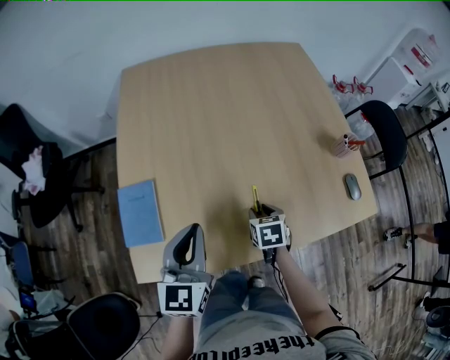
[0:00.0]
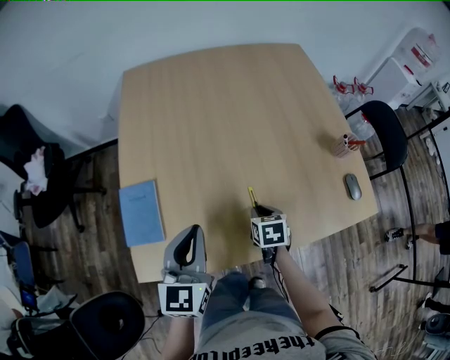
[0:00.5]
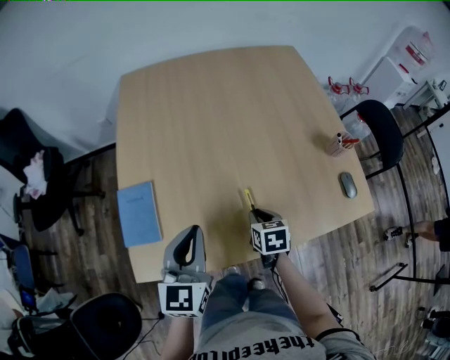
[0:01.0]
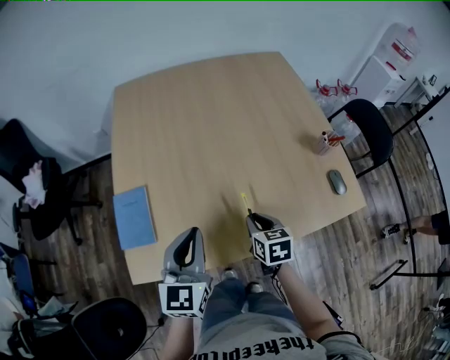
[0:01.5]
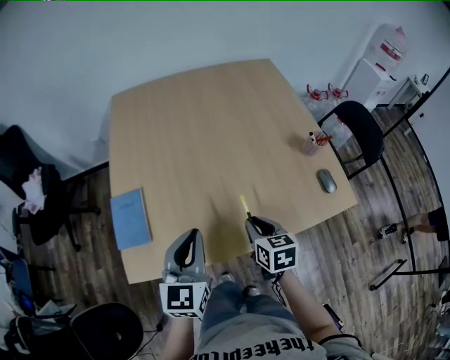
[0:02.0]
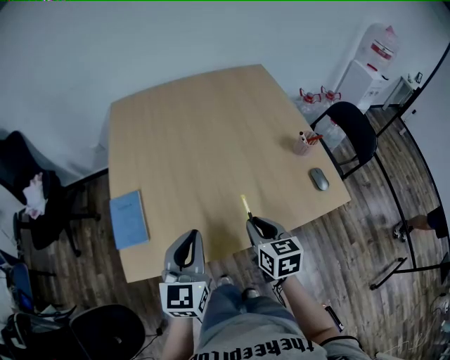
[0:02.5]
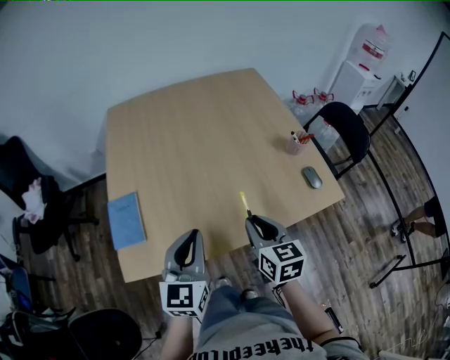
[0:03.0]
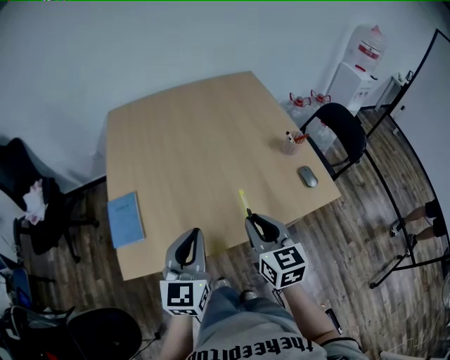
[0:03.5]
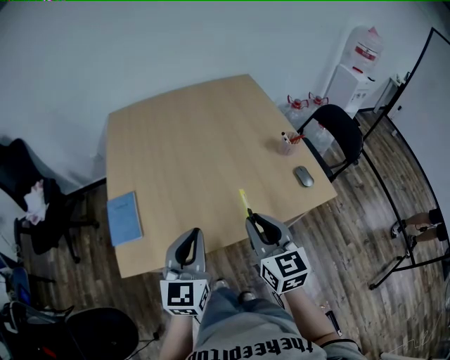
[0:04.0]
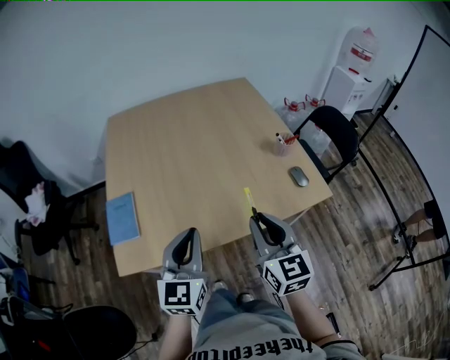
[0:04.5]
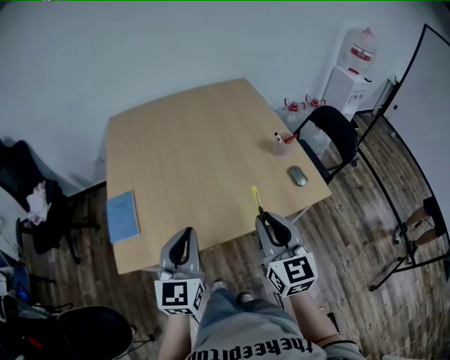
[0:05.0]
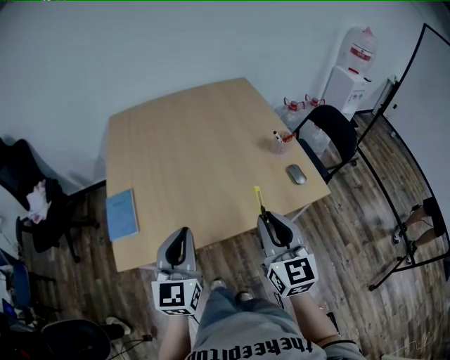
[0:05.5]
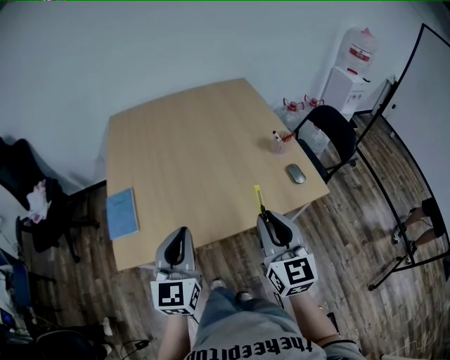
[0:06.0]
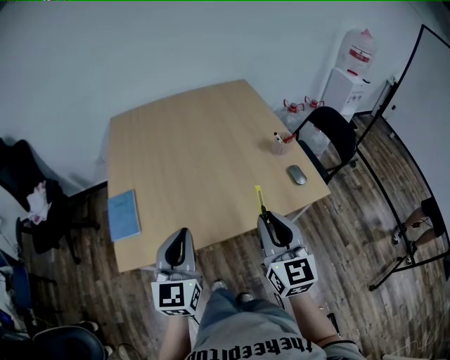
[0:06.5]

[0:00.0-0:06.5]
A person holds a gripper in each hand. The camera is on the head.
0.0 to 2.0 s: The left gripper changes place by about 5 cm. The right gripper moves upward and backward, some 15 cm, swivels roughly 20 degrees, and closes up.
2.0 to 4.5 s: The right gripper moves upward and backward, some 20 cm, and changes its angle by about 30 degrees. Meanwhile the left gripper goes about 10 cm backward and to the right.
4.5 to 6.5 s: The grippers make only small movements.

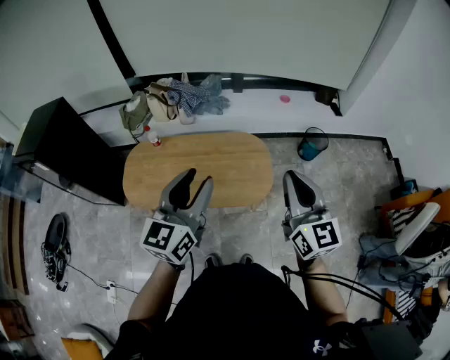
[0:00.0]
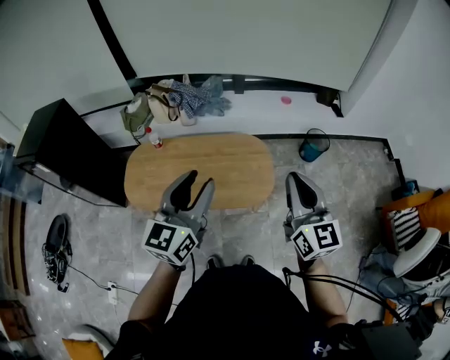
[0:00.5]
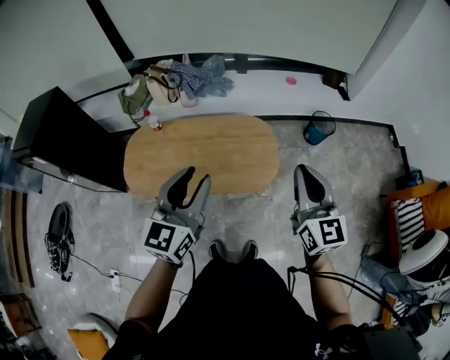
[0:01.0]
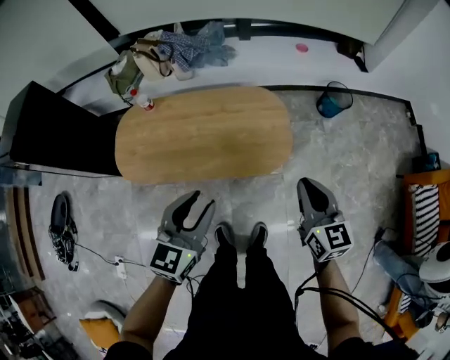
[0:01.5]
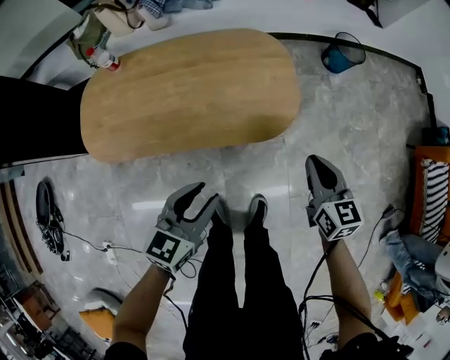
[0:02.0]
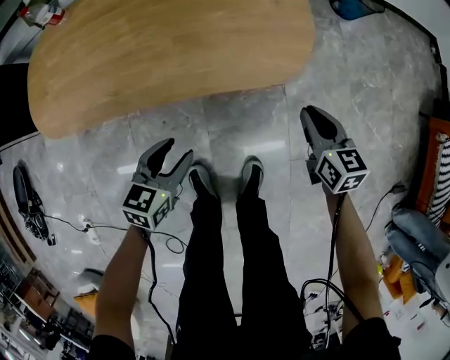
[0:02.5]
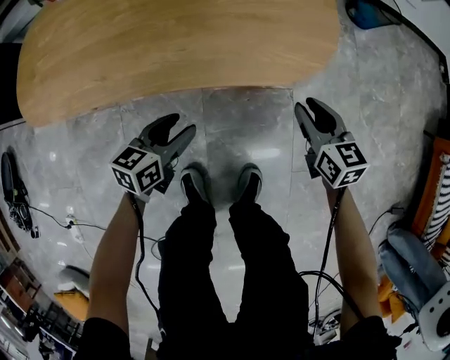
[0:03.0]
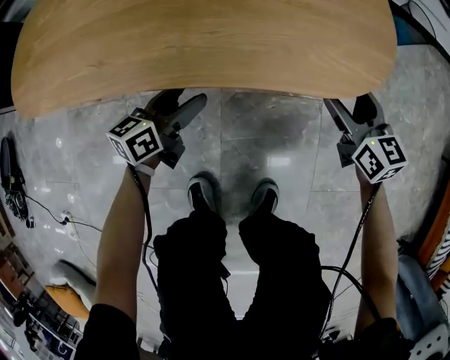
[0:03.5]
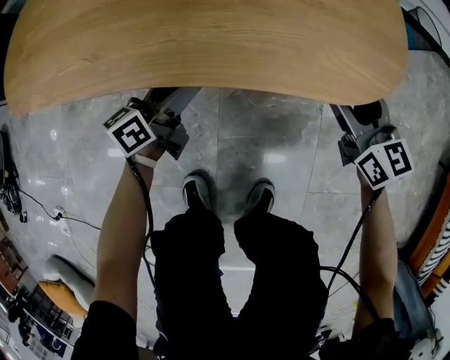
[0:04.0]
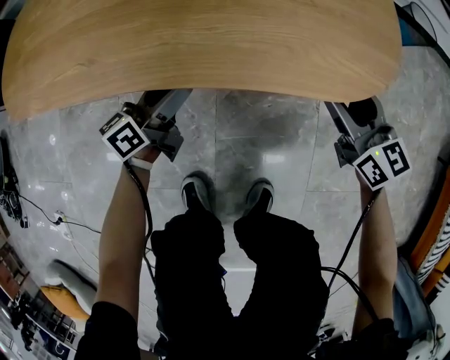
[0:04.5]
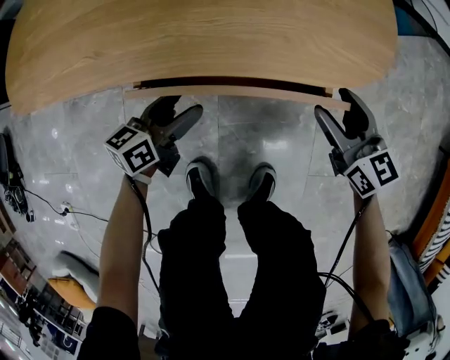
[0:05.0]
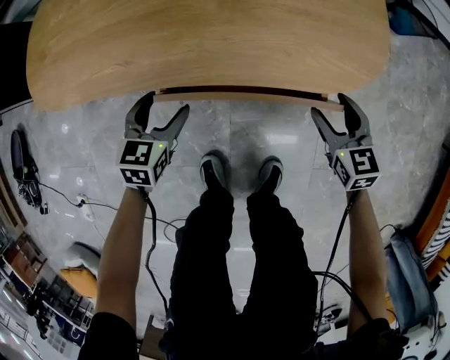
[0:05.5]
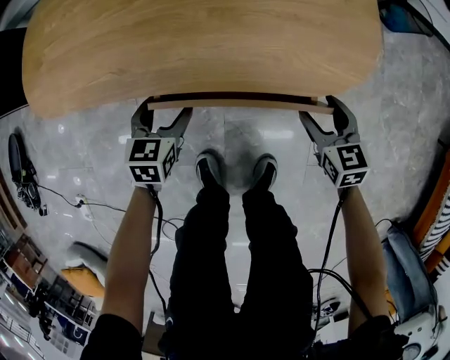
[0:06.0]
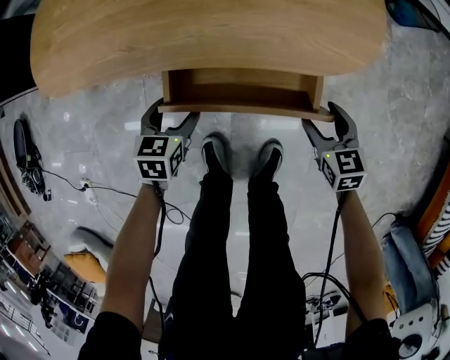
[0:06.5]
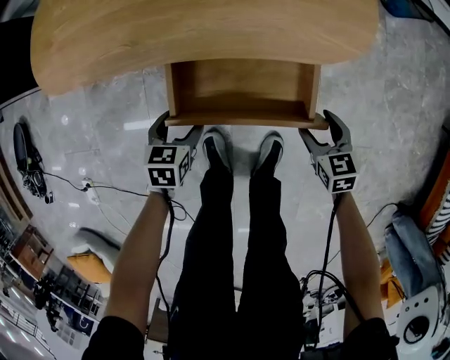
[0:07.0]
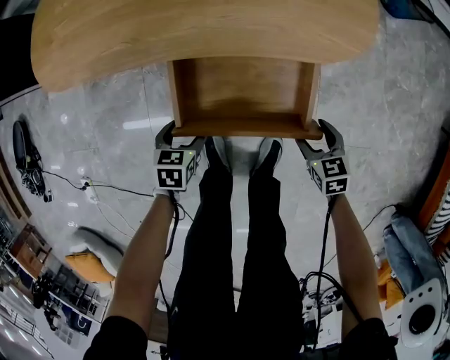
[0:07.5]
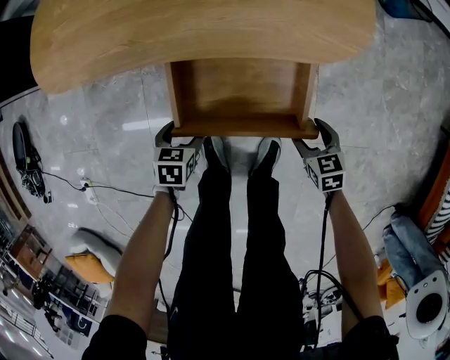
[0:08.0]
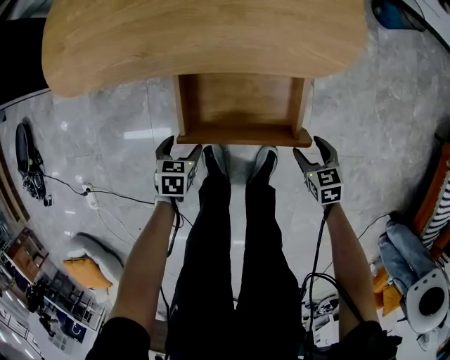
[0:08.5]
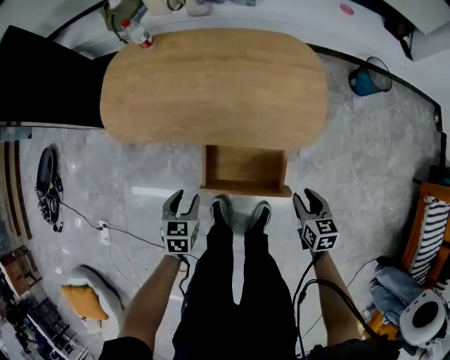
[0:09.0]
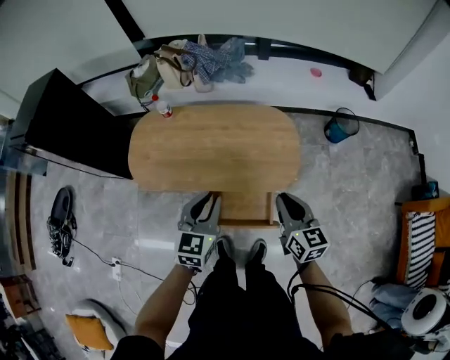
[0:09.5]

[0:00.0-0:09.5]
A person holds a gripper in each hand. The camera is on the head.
0.0 to 2.0 s: The grippers both shift downward by approximately 40 cm. The left gripper changes its angle by roughly 30 degrees. Meanwhile the right gripper turns by about 30 degrees.
2.0 to 4.0 s: The two grippers go about 35 cm downward. The left gripper rotates roughly 40 degrees, and opens up. The right gripper swivels roughly 20 degrees, and opens its fingers.
4.0 to 5.5 s: The right gripper shifts roughly 5 cm backward. The left gripper moves backward and to the left, some 10 cm, and tips its fingers downward by roughly 40 degrees.
5.5 to 7.5 s: The grippers both shift backward by about 15 cm. The left gripper turns by some 20 degrees.
7.5 to 9.5 s: Both grippers move upward, approximately 60 cm. The left gripper angles its fingers upward, by about 40 degrees, and closes. Meanwhile the right gripper angles its fingers upward, by about 40 degrees, and closes.

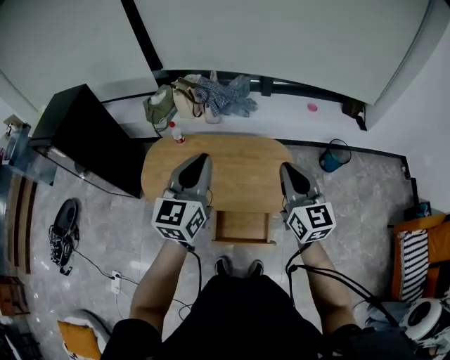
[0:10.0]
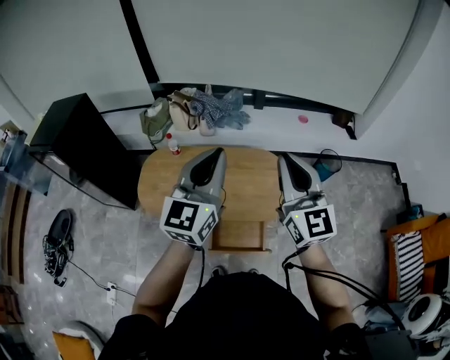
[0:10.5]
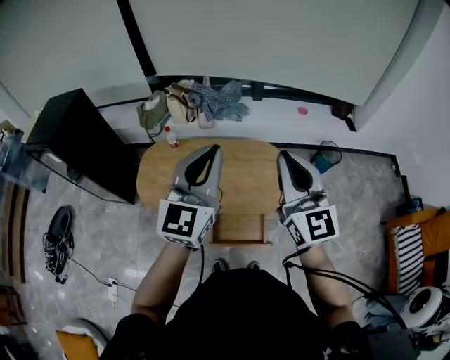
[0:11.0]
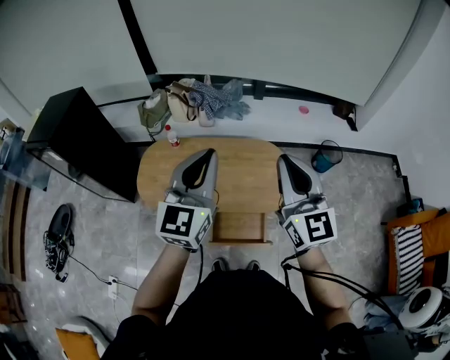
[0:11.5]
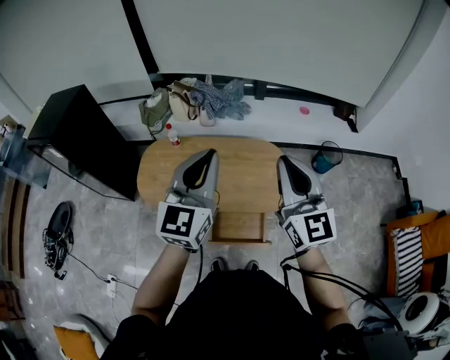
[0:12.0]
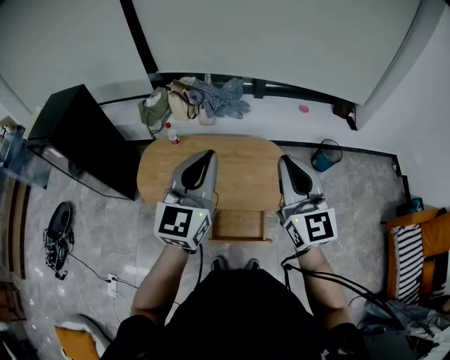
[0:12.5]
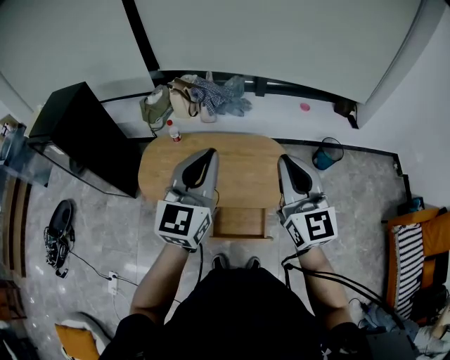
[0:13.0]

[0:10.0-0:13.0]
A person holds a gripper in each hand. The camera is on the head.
10.0 to 11.5 s: The left gripper heads upward, covering about 5 cm, while the right gripper heads upward, covering roughly 10 cm.
11.5 to 13.0 s: The grippers make only small movements.

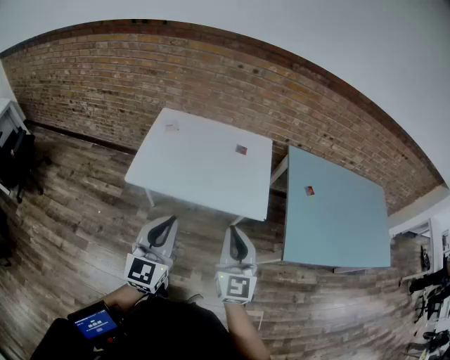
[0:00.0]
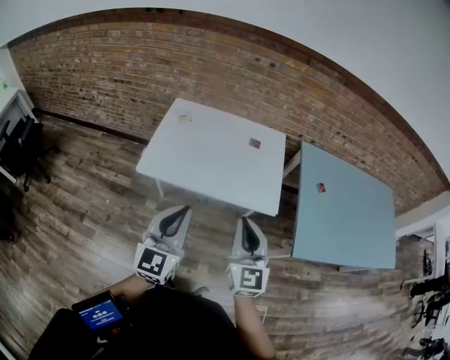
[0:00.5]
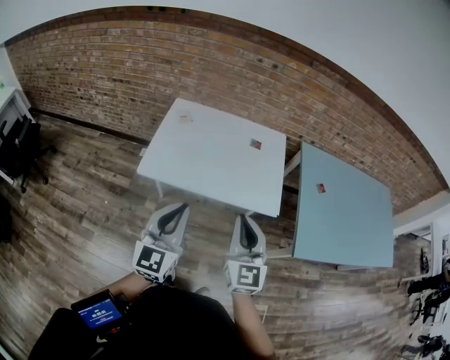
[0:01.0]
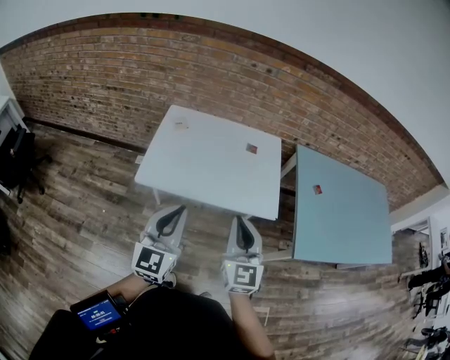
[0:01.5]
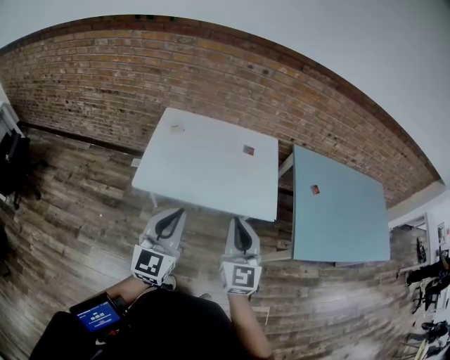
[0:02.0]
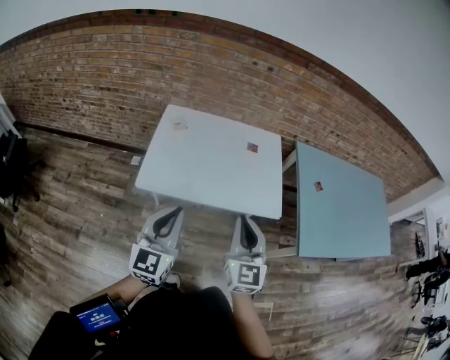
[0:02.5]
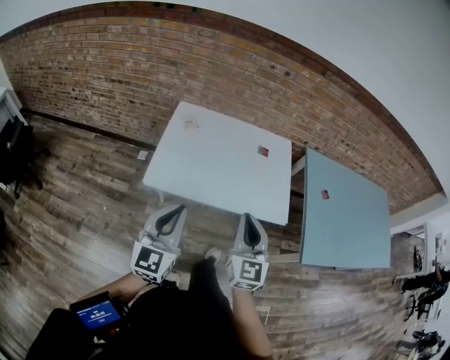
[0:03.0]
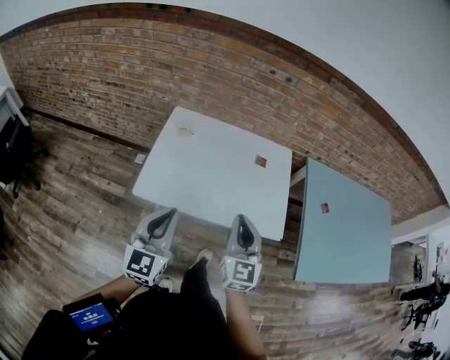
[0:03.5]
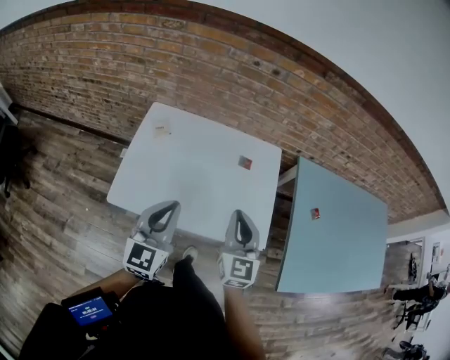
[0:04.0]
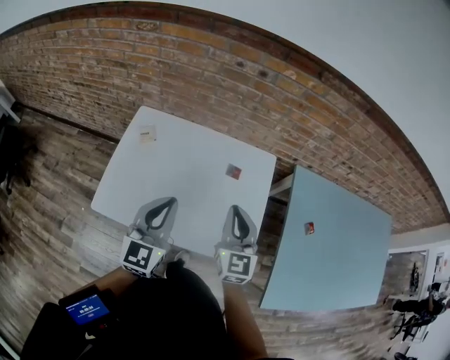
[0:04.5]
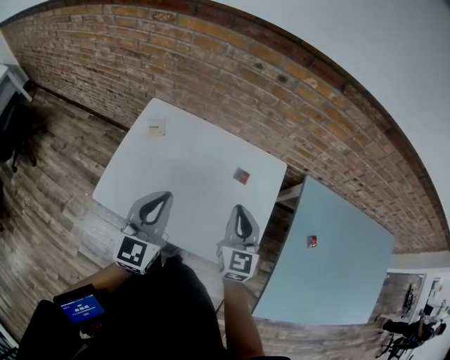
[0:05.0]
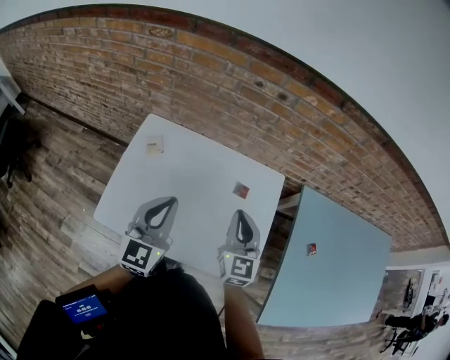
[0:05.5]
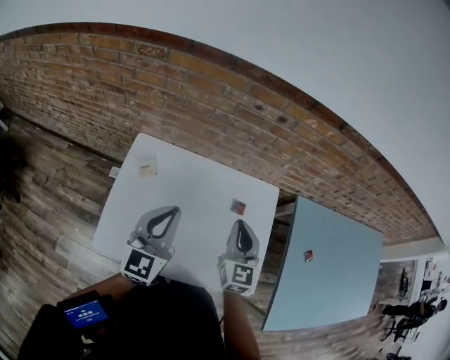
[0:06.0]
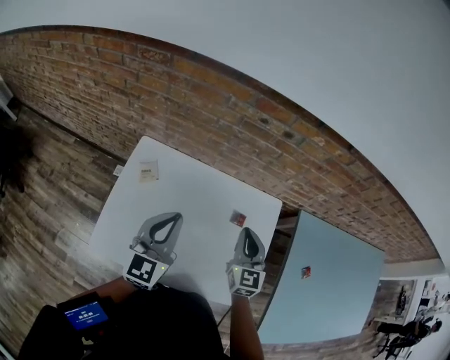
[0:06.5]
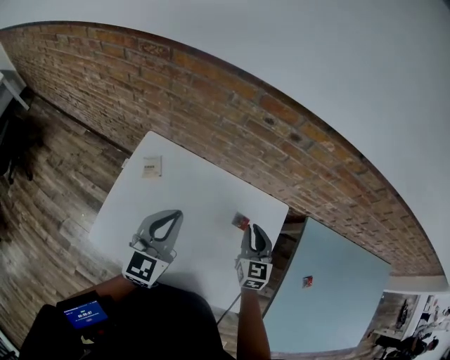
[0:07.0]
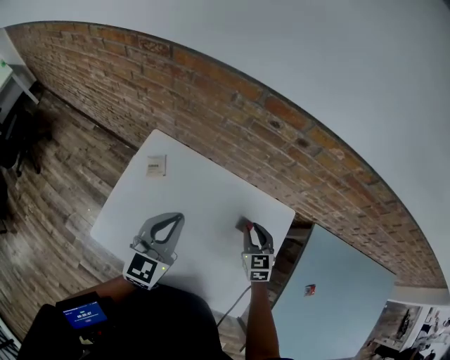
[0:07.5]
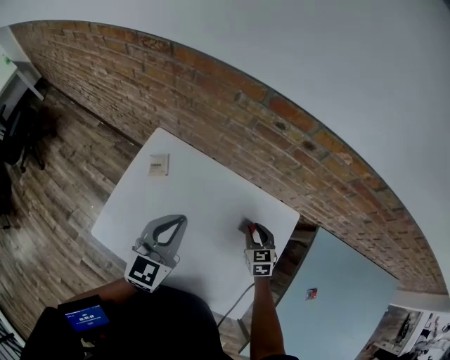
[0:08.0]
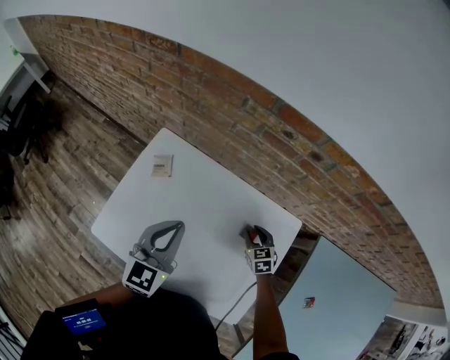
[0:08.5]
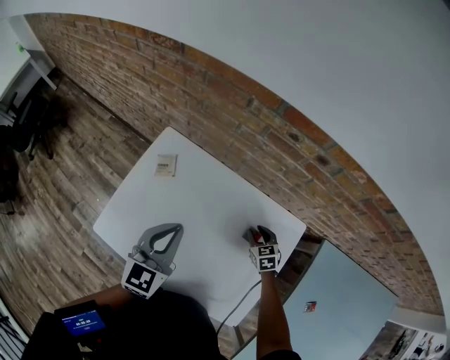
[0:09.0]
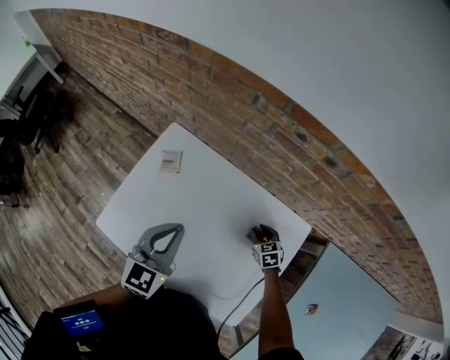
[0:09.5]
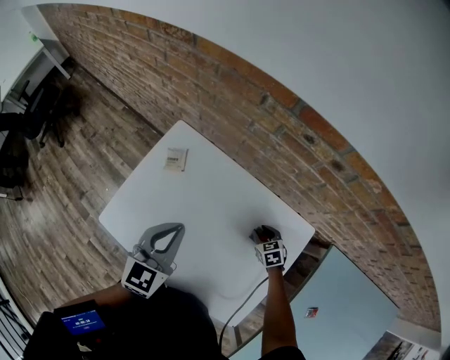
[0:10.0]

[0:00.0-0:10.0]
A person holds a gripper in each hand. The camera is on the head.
0.0 to 2.0 s: Both grippers travel together to the left, about 5 cm.
2.0 to 4.0 s: The grippers both shift forward by roughly 20 cm.
4.0 to 6.0 s: The two grippers go about 20 cm forward.
6.0 to 8.0 s: The left gripper moves forward, approximately 5 cm, while the right gripper travels downward and forward by approximately 25 cm, changes its angle by some 40 degrees, and opens its fingers.
8.0 to 10.0 s: The right gripper travels downward by roughly 10 cm, and rotates approximately 20 degrees.
